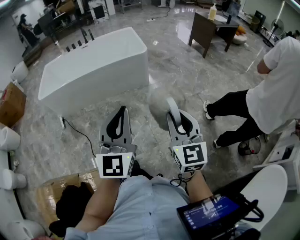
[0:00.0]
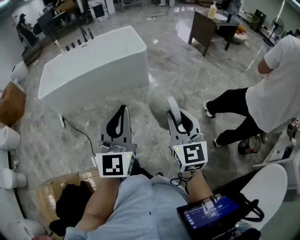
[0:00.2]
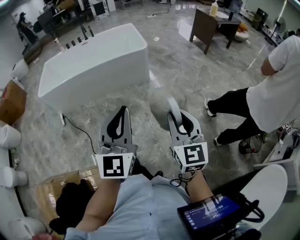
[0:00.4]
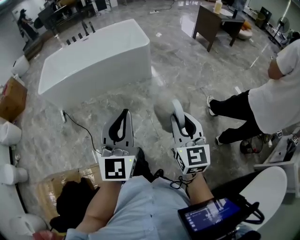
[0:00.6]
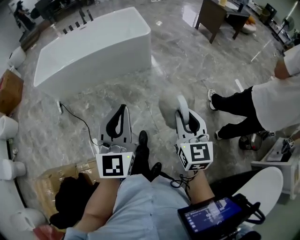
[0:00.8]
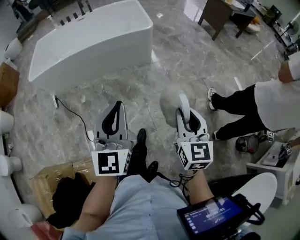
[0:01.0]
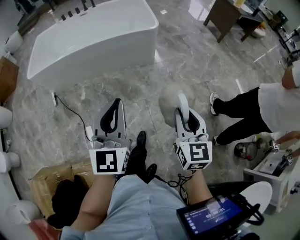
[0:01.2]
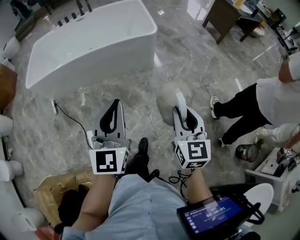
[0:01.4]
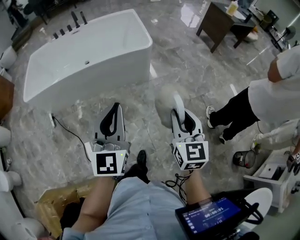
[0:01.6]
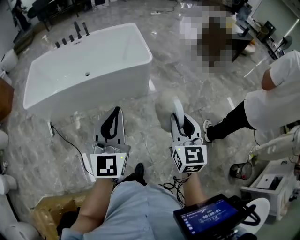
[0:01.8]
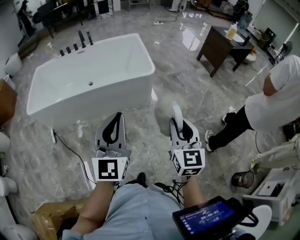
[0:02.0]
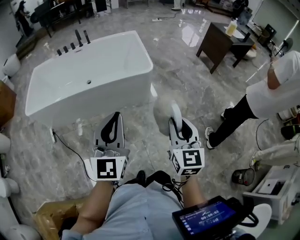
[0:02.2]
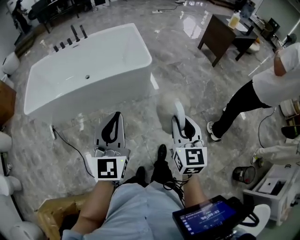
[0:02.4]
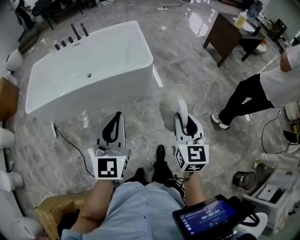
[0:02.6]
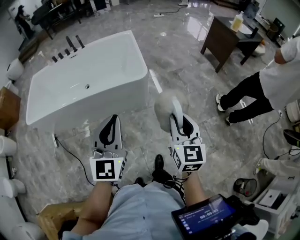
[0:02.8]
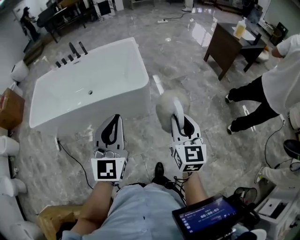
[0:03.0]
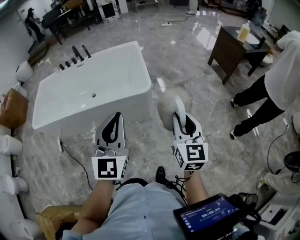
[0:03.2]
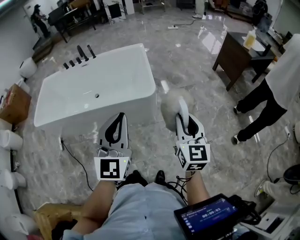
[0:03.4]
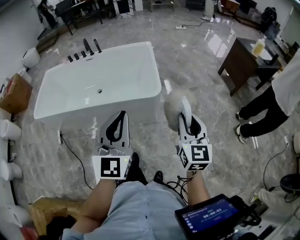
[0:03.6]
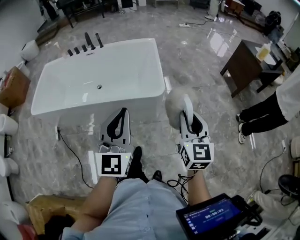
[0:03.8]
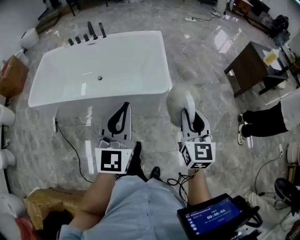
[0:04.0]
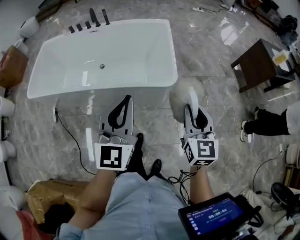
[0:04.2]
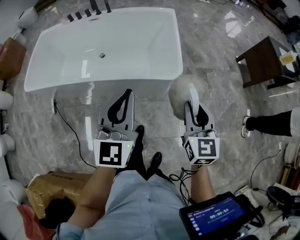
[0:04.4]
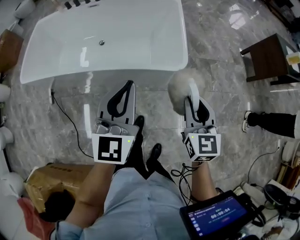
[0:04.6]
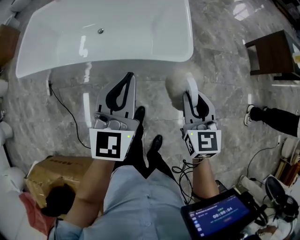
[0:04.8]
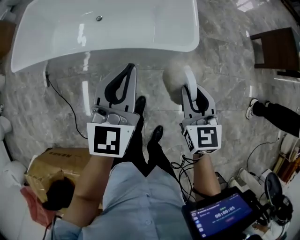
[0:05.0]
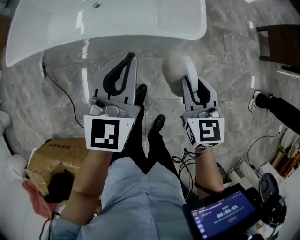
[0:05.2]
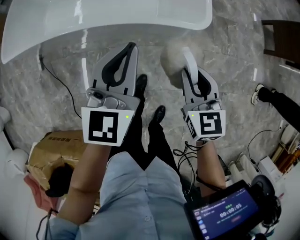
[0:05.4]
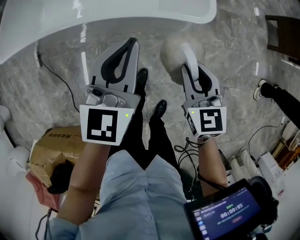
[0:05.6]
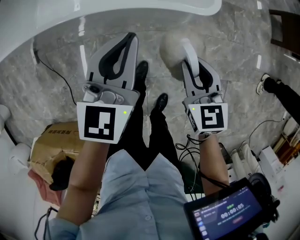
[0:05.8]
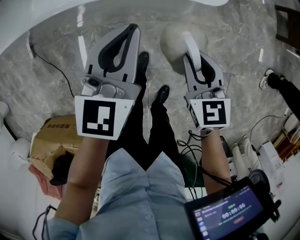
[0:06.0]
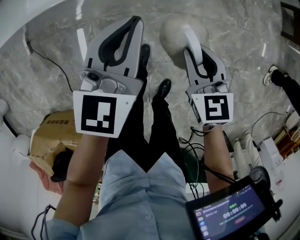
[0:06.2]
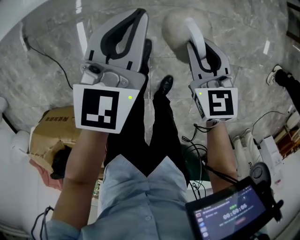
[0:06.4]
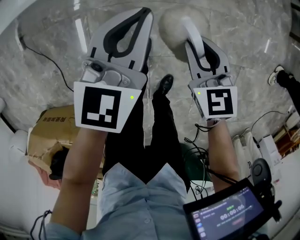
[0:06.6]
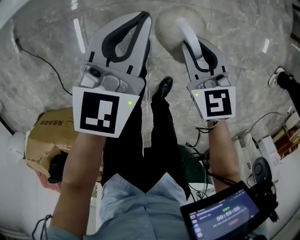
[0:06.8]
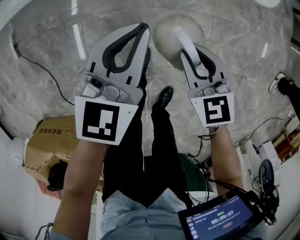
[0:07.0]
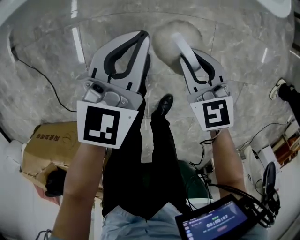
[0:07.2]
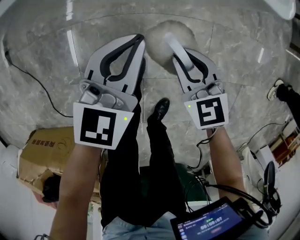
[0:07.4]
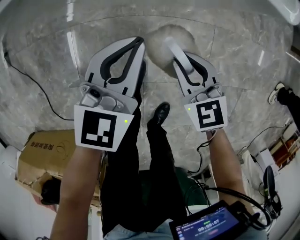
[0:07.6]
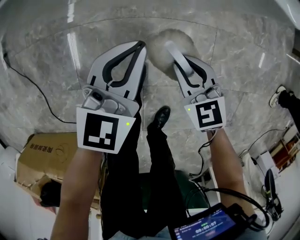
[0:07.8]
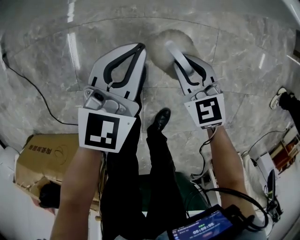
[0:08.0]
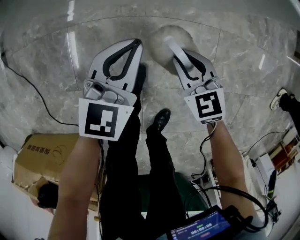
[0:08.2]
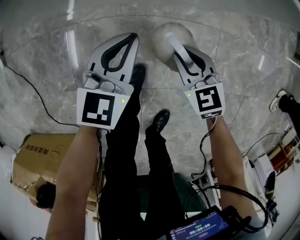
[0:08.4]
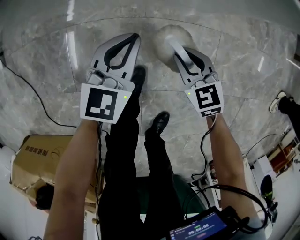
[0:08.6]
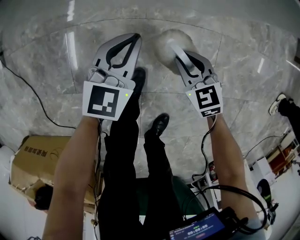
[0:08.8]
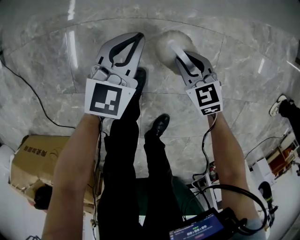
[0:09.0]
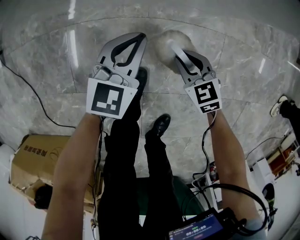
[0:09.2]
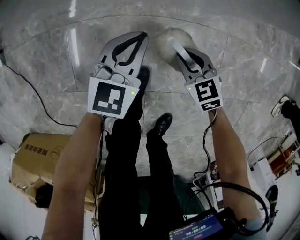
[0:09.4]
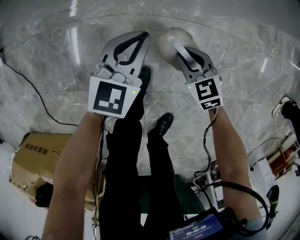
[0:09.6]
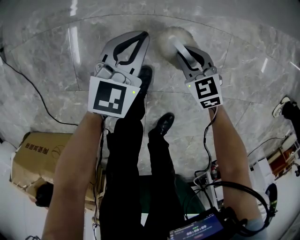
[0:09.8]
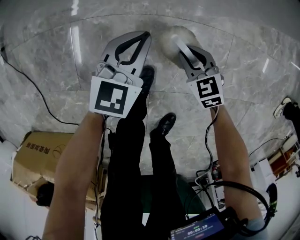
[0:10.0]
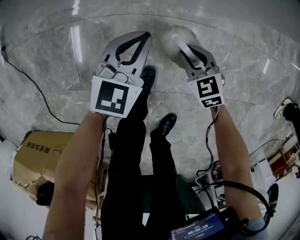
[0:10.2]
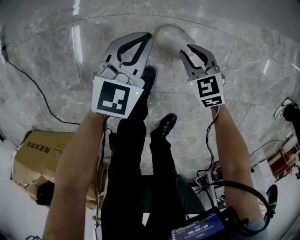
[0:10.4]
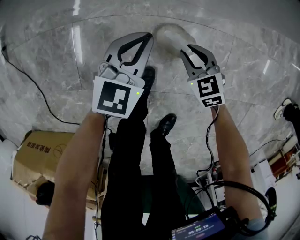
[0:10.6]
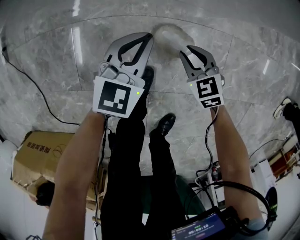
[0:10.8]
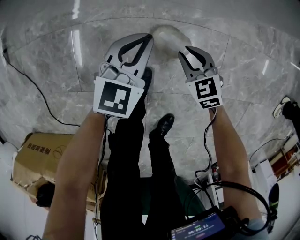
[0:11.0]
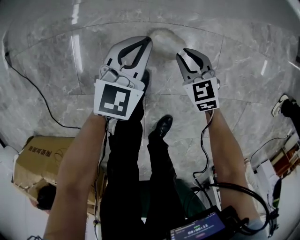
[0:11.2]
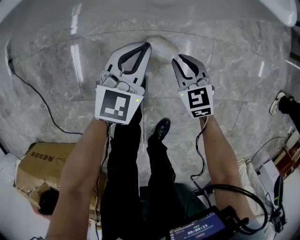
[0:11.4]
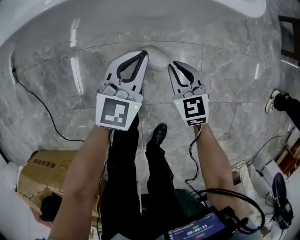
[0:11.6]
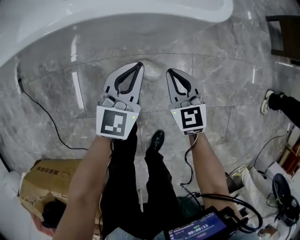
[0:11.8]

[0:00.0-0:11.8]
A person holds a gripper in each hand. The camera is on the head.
0:00.0 to 0:01.4: The grippers both shift forward by approximately 25 cm.
0:01.4 to 0:03.0: The grippers both shift forward and to the right by some 35 cm.
0:03.0 to 0:04.4: The two grippers go approximately 25 cm forward and to the left.
0:04.4 to 0:06.0: Both grippers travel together downward, some 30 cm. The right gripper changes its angle by about 30 degrees, while the left gripper swivels some 20 degrees.
0:06.0 to 0:07.4: Both grippers move downward, approximately 30 cm.
0:07.4 to 0:08.8: Both grippers travel together downward, approximately 15 cm.
0:08.8 to 0:10.4: The right gripper is displaced downward by roughly 5 cm.
0:10.4 to 0:11.8: The two grippers go about 25 cm upward. The right gripper changes its angle by approximately 30 degrees, and closes up.

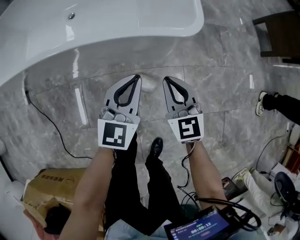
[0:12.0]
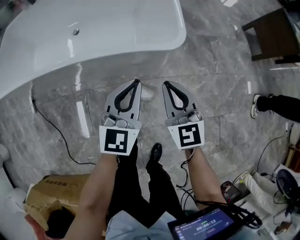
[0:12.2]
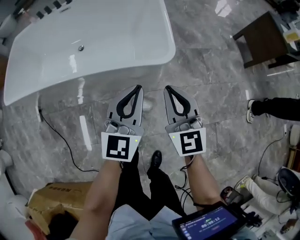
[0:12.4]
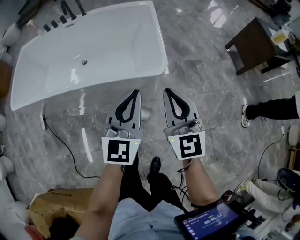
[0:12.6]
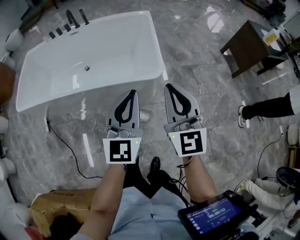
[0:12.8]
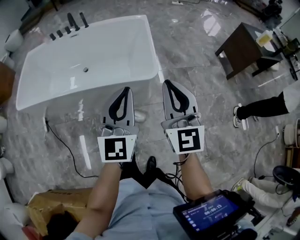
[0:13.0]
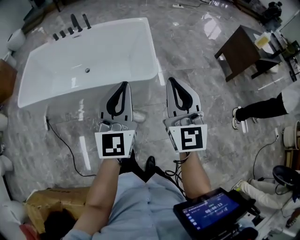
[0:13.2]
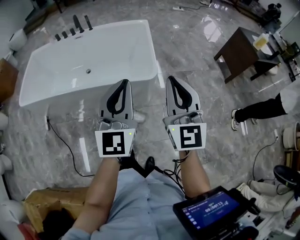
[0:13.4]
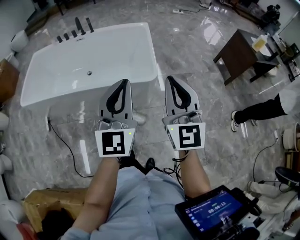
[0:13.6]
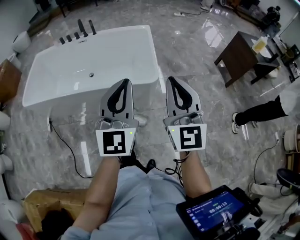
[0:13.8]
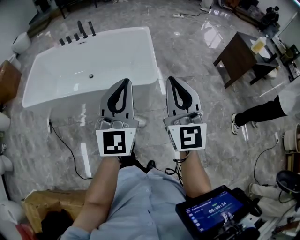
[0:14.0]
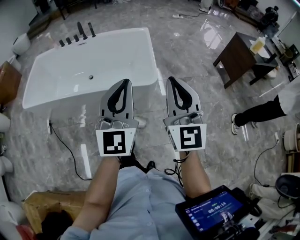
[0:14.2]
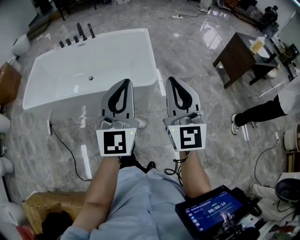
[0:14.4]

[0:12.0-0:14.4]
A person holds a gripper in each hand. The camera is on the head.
0:12.0 to 0:13.2: Both grippers move upward, some 50 cm. The left gripper turns by roughly 20 degrees, while the right gripper swivels roughly 30 degrees.
0:13.2 to 0:14.4: Both grippers move upward, some 5 cm.

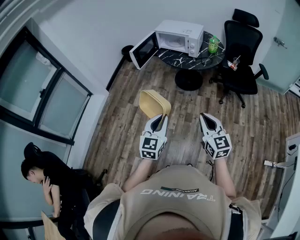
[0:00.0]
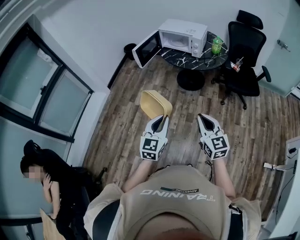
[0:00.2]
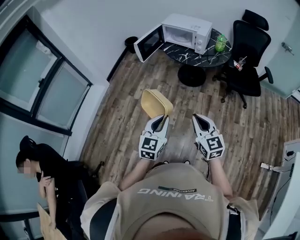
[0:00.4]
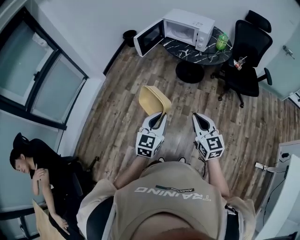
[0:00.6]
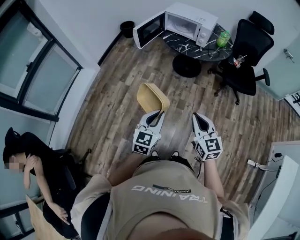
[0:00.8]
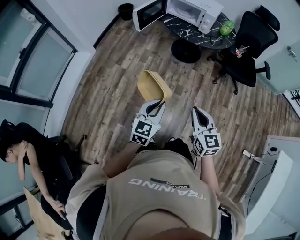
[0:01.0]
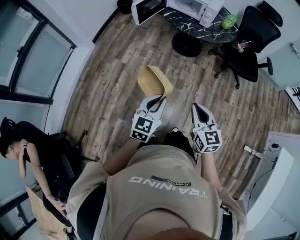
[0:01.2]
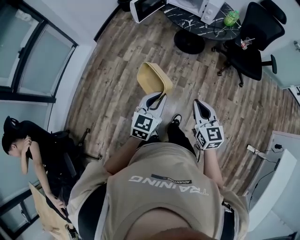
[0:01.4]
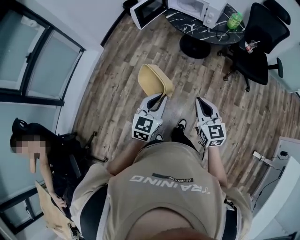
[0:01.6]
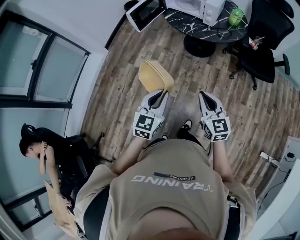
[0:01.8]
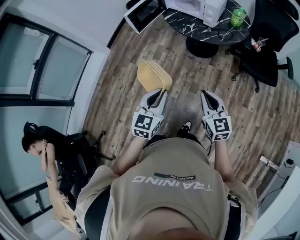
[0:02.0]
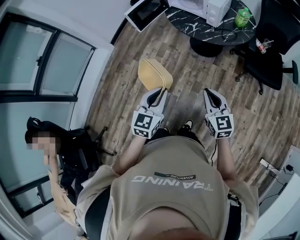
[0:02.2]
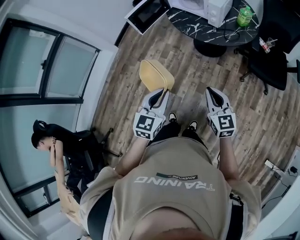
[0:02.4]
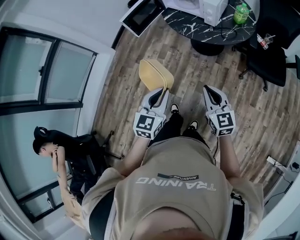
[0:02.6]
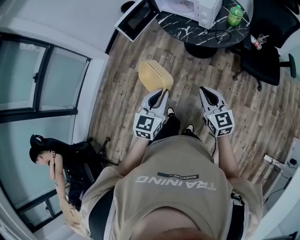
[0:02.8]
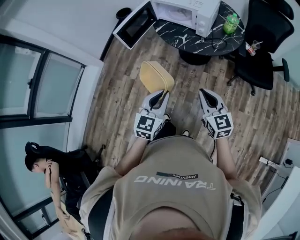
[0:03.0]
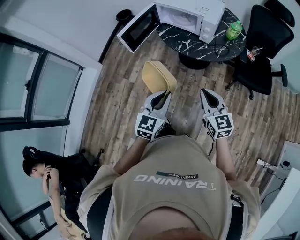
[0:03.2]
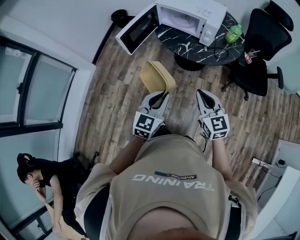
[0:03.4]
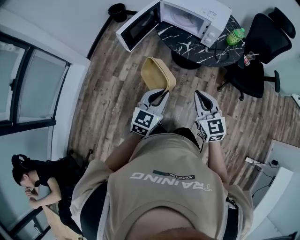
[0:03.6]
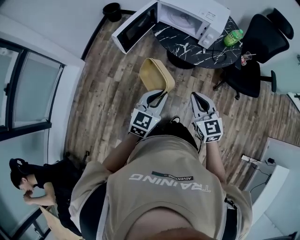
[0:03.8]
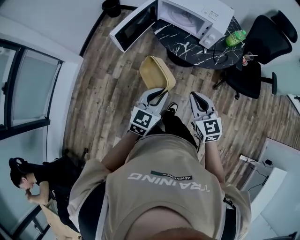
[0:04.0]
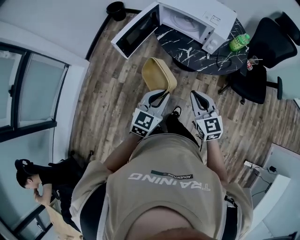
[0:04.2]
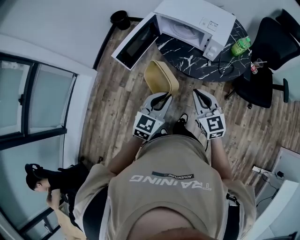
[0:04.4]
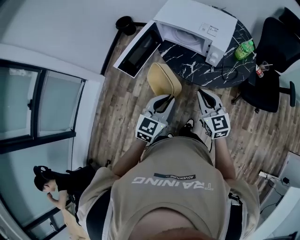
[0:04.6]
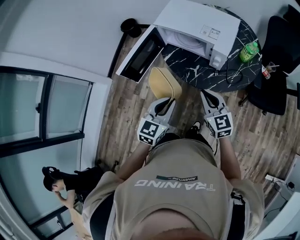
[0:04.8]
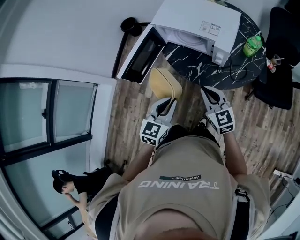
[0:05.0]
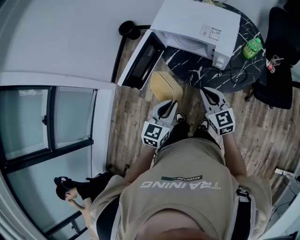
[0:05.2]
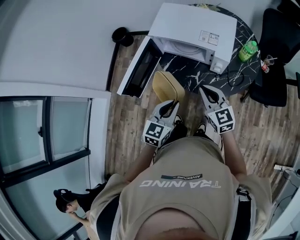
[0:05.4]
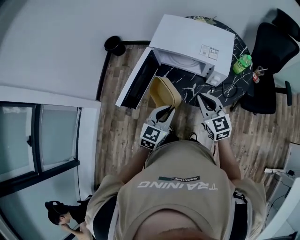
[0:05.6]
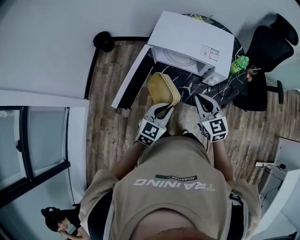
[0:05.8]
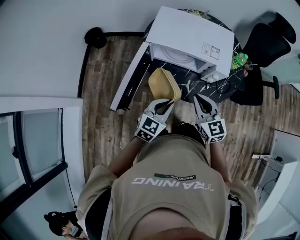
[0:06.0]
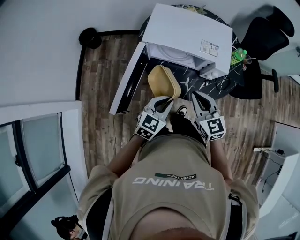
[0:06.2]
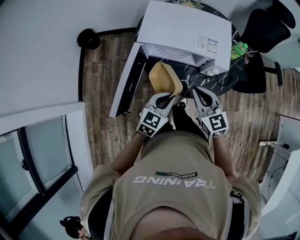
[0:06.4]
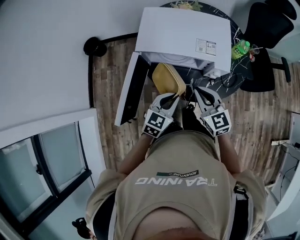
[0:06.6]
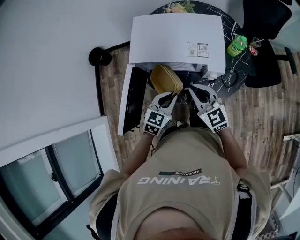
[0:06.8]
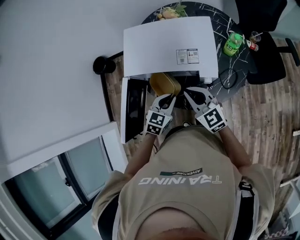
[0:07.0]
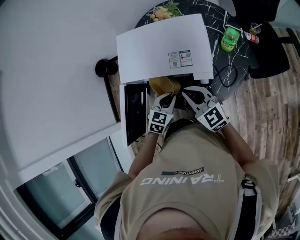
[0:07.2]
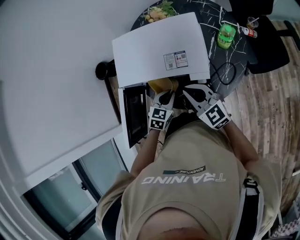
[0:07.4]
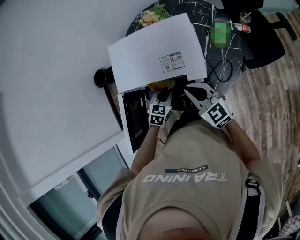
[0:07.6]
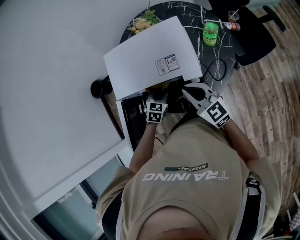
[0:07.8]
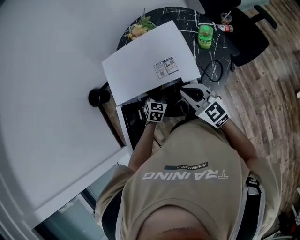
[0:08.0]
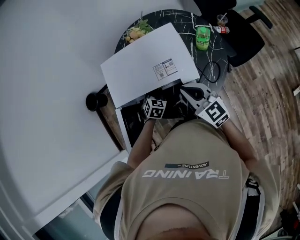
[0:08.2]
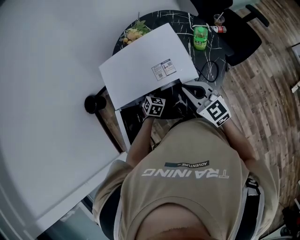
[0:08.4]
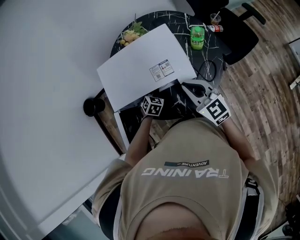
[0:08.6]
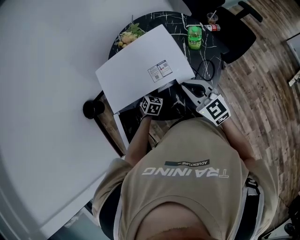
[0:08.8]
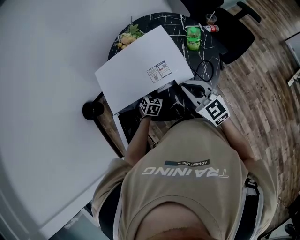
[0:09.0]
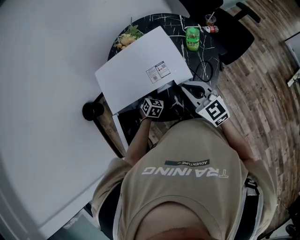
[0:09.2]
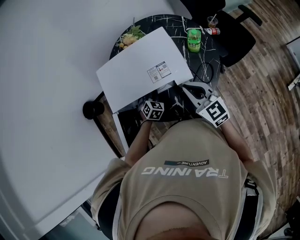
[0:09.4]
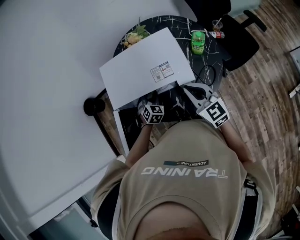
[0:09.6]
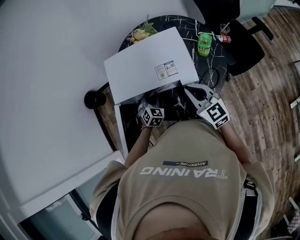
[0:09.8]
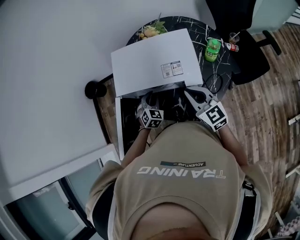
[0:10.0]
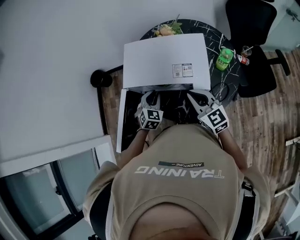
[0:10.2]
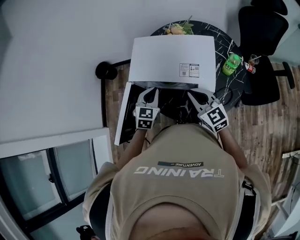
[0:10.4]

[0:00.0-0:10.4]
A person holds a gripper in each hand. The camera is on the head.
0:00.0 to 0:01.4: The right gripper moves downward and to the left, approximately 10 cm, while the left gripper moves downward, approximately 10 cm.
0:01.4 to 0:03.0: The grippers both shift forward and to the right by approximately 25 cm.
0:03.0 to 0:04.4: The right gripper is displaced forward and to the left by some 20 cm, while the left gripper shifts some 20 cm forward.
0:04.4 to 0:06.0: The two grippers go roughly 20 cm forward.
0:06.0 to 0:07.4: The right gripper is displaced forward and to the right by some 15 cm. Meanwhile the left gripper travels forward, downward and to the right by about 20 cm, and changes its angle by about 20 degrees.
0:07.4 to 0:09.0: The right gripper moves approximately 5 cm, and swivels about 20 degrees. The left gripper shifts roughly 15 cm forward and downward, and turns by roughly 30 degrees.
0:09.0 to 0:10.4: The right gripper travels to the left by roughly 5 cm, and changes its angle by about 20 degrees. Meanwhile the left gripper shifts about 20 cm upward and to the left, and changes its angle by approximately 40 degrees.
